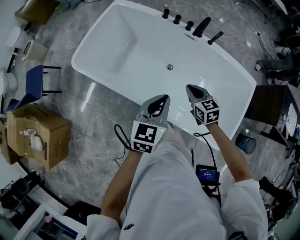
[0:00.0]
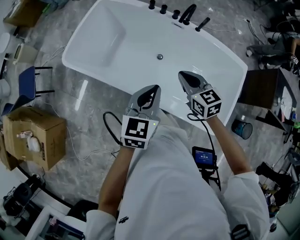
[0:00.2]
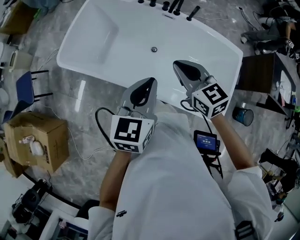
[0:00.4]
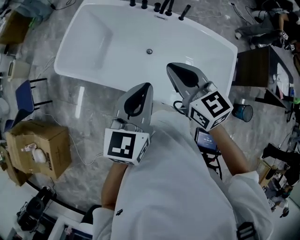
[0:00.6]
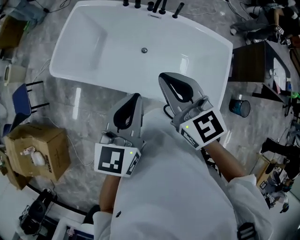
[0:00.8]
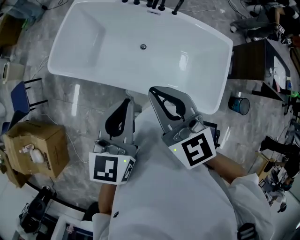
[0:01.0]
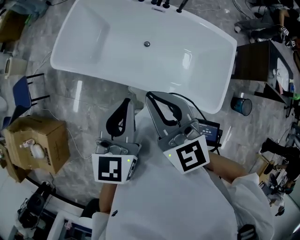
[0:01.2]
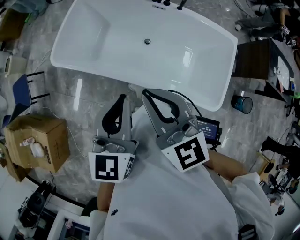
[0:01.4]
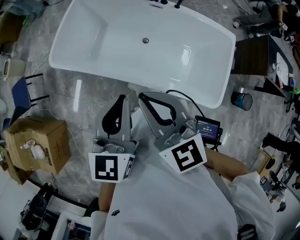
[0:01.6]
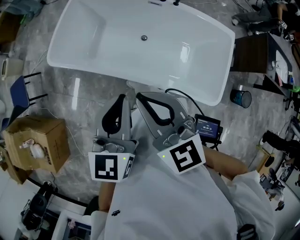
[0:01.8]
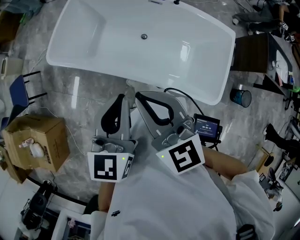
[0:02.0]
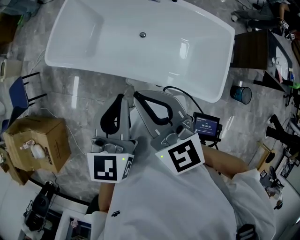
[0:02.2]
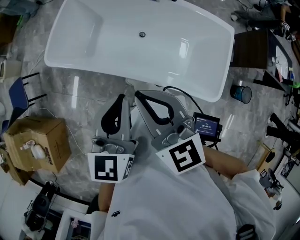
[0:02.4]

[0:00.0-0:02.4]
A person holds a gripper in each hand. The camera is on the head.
0.0 to 1.2 s: The left gripper goes about 20 cm upward and backward. The right gripper heads upward and backward, covering roughly 35 cm, and swivels some 30 degrees.
1.2 to 2.4 s: The grippers make only small movements.

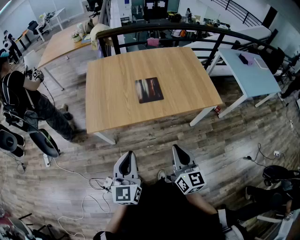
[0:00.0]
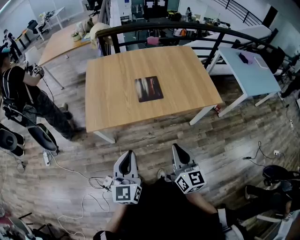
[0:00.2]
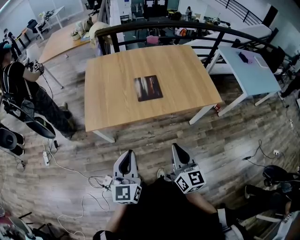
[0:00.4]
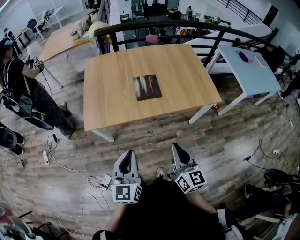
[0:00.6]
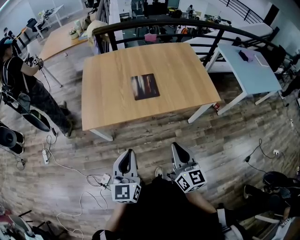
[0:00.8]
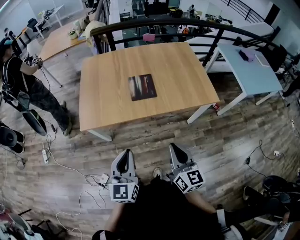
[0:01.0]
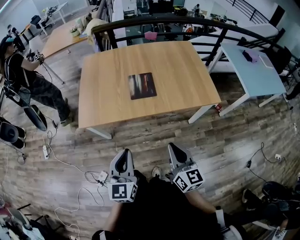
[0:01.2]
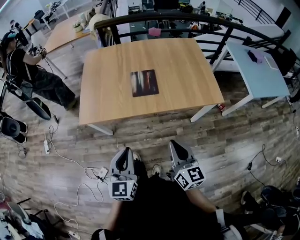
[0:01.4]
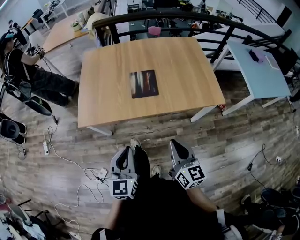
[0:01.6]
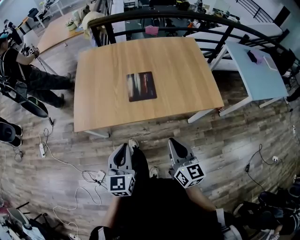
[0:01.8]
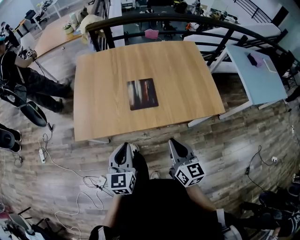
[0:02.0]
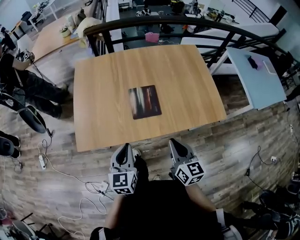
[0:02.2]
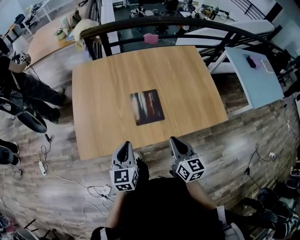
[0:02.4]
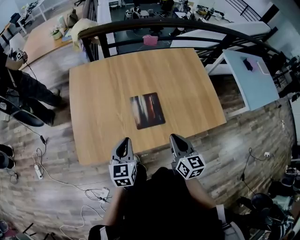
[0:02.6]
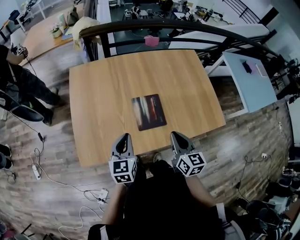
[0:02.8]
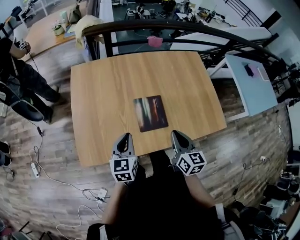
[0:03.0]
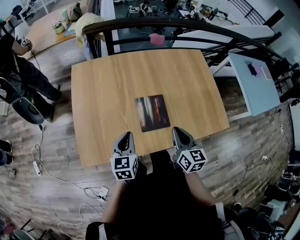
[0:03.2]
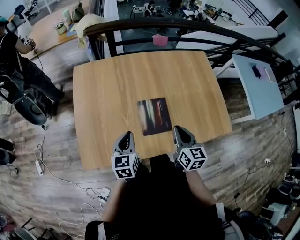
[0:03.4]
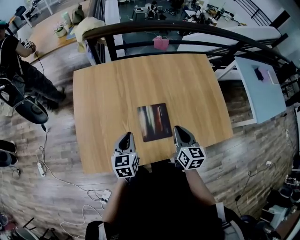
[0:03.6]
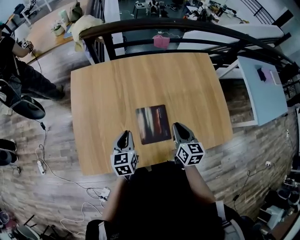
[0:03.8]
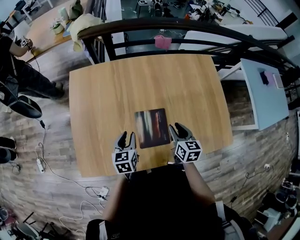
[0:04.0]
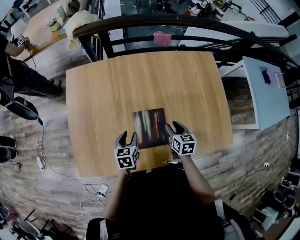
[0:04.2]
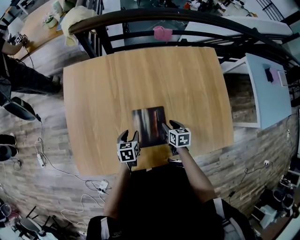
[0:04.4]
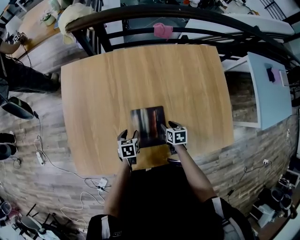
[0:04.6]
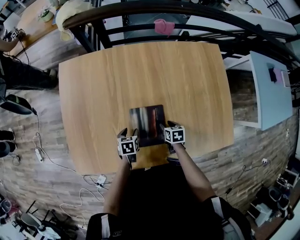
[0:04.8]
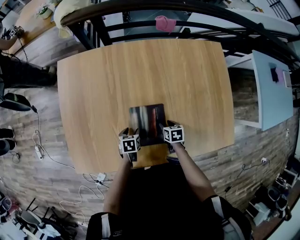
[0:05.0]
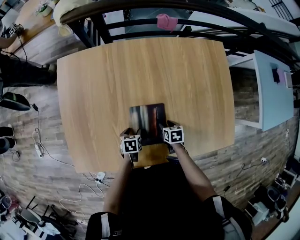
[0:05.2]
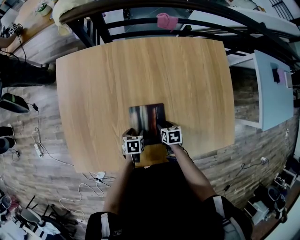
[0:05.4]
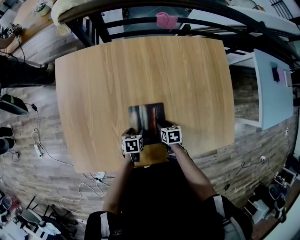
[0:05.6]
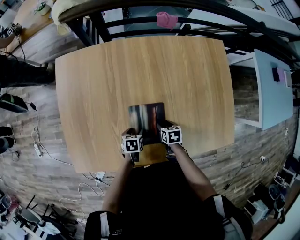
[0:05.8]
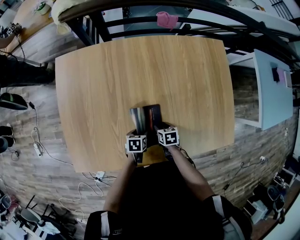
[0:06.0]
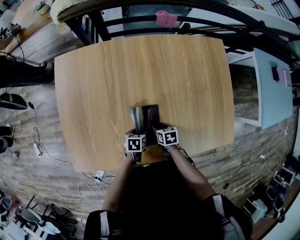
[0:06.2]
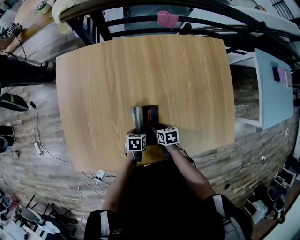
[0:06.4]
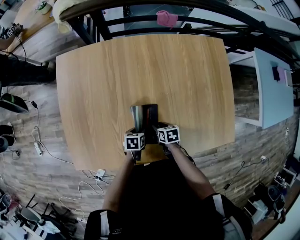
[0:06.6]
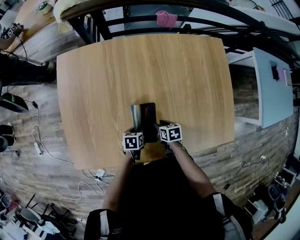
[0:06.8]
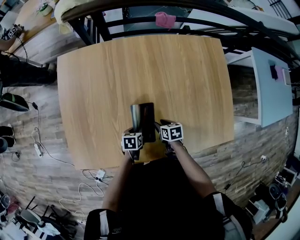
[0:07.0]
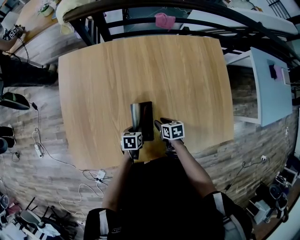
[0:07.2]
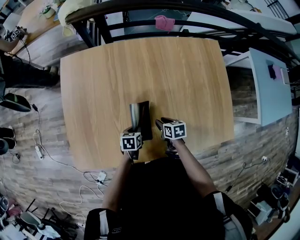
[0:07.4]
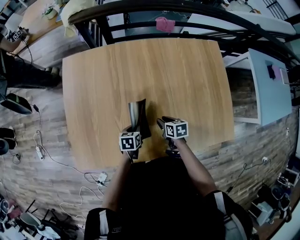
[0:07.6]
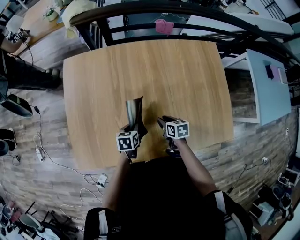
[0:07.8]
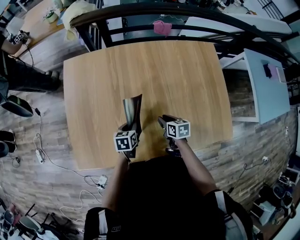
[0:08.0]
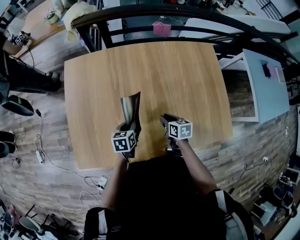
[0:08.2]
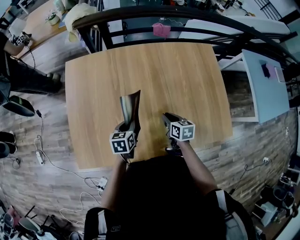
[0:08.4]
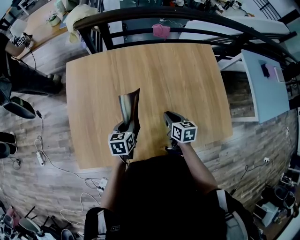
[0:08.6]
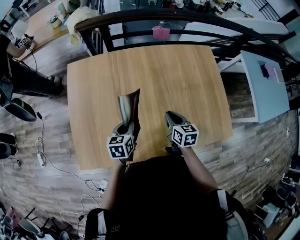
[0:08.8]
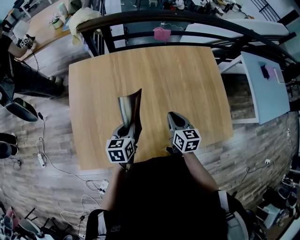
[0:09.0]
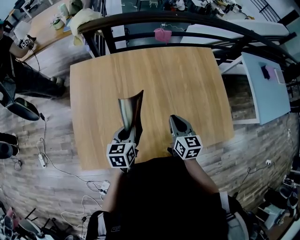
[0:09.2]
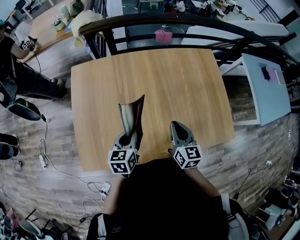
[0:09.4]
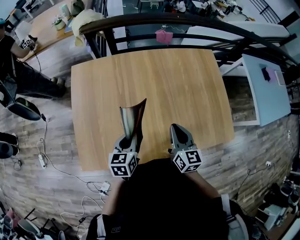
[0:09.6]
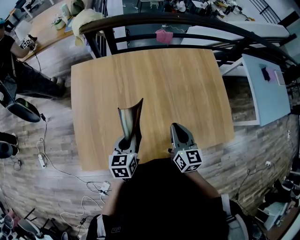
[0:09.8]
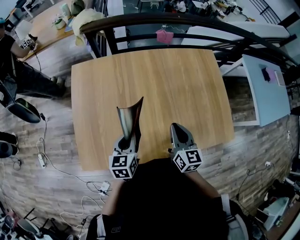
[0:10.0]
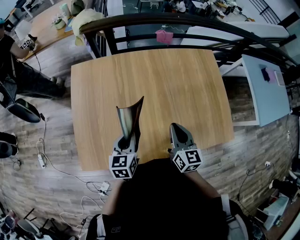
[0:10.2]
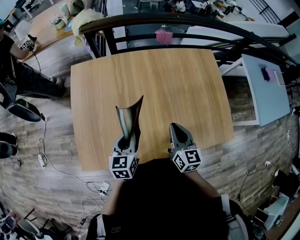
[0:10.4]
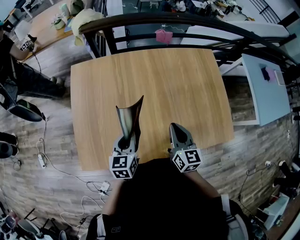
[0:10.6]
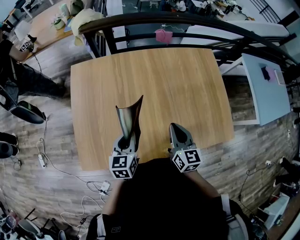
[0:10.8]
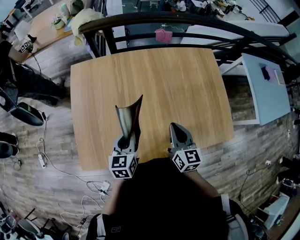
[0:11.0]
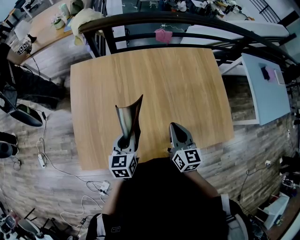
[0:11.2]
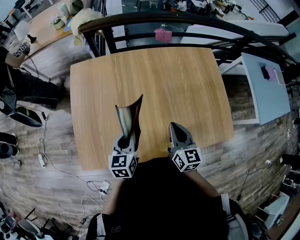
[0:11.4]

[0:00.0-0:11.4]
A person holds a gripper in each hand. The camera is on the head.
0.0 to 1.4 s: Both grippers move to the right, about 10 cm.
1.4 to 2.8 s: Both grippers travel together forward, about 35 cm.
2.8 to 4.2 s: The right gripper is displaced forward and downward by roughly 25 cm, swivels some 20 degrees, and opens. The left gripper goes some 20 cm downward and forward, changes its angle by approximately 20 degrees, and opens its fingers.
4.2 to 5.6 s: Both grippers move downward, roughly 15 cm. The left gripper rotates roughly 30 degrees. Meanwhile the right gripper changes its angle by roughly 30 degrees.
5.6 to 7.2 s: The left gripper closes.
7.2 to 8.6 s: Both grippers move upward, approximately 15 cm. The right gripper changes its angle by about 20 degrees, and closes. Meanwhile the left gripper changes its angle by some 20 degrees.
8.6 to 10.0 s: The left gripper goes roughly 10 cm upward; the right gripper heads upward, covering about 15 cm, and swivels roughly 30 degrees.
10.0 to 11.4 s: Both grippers stay put.

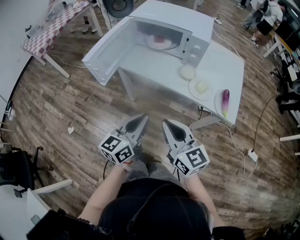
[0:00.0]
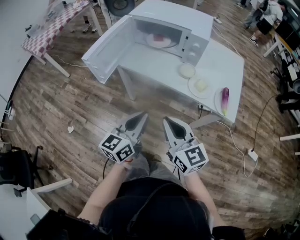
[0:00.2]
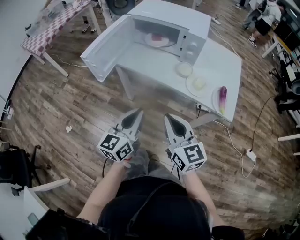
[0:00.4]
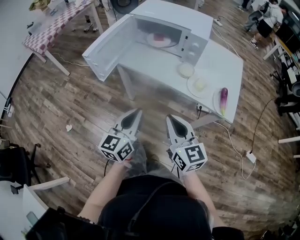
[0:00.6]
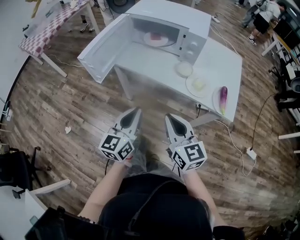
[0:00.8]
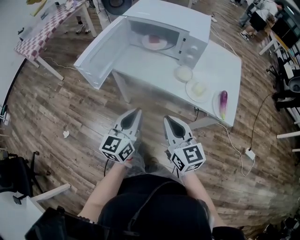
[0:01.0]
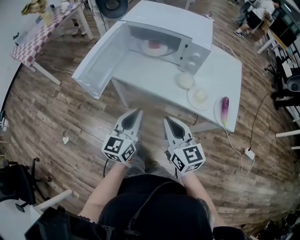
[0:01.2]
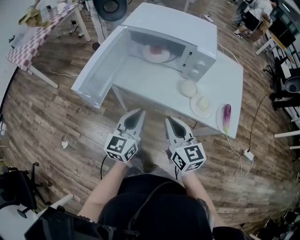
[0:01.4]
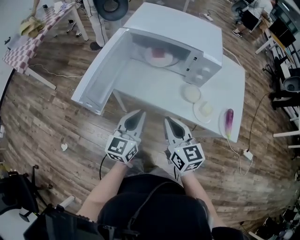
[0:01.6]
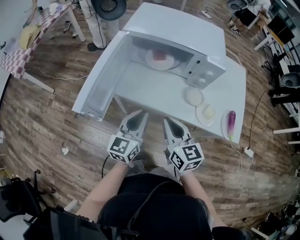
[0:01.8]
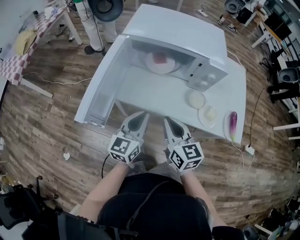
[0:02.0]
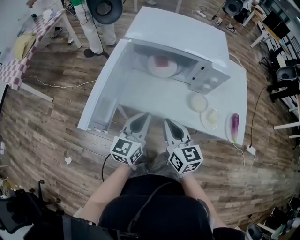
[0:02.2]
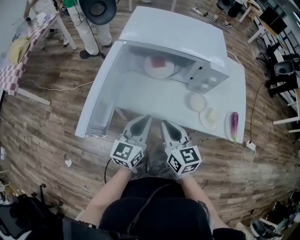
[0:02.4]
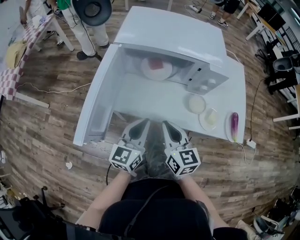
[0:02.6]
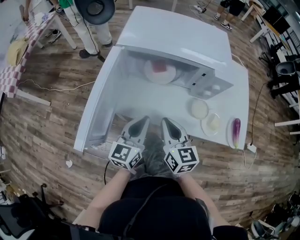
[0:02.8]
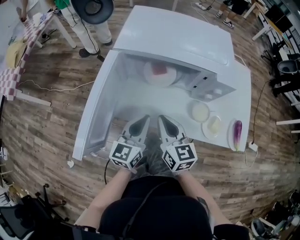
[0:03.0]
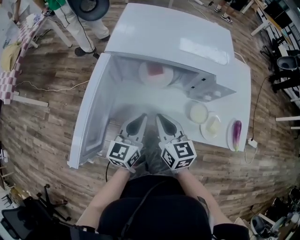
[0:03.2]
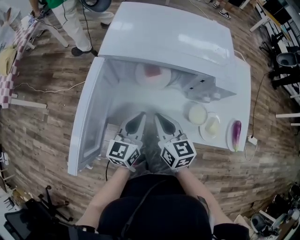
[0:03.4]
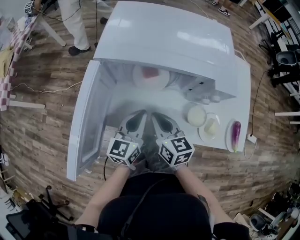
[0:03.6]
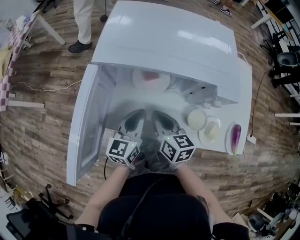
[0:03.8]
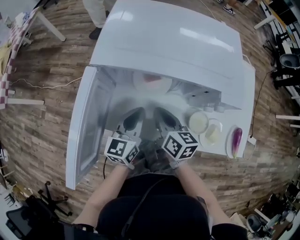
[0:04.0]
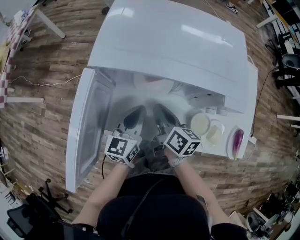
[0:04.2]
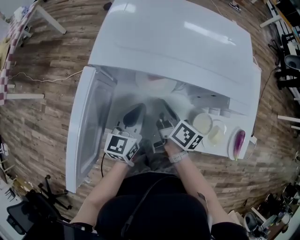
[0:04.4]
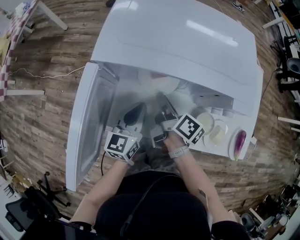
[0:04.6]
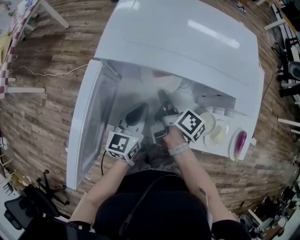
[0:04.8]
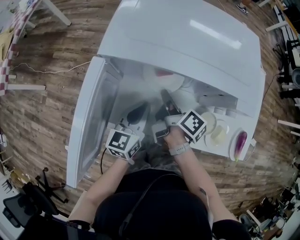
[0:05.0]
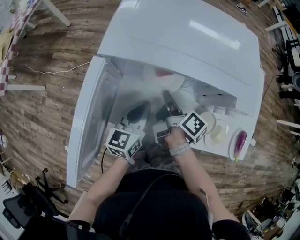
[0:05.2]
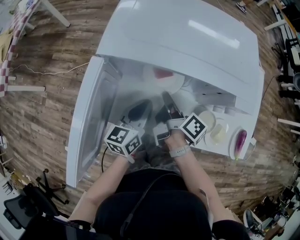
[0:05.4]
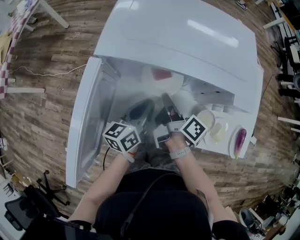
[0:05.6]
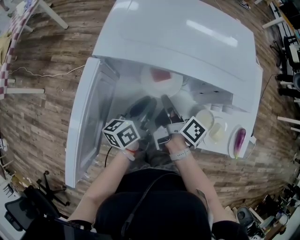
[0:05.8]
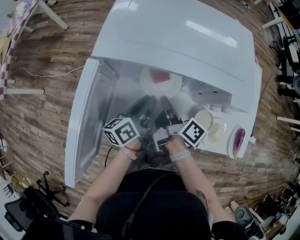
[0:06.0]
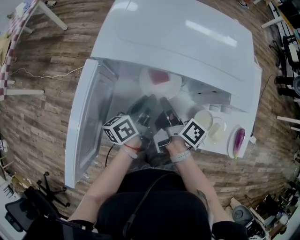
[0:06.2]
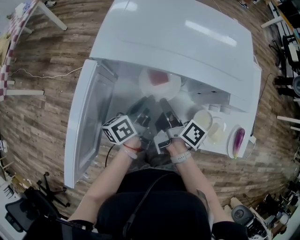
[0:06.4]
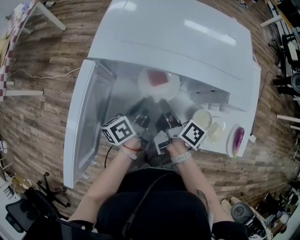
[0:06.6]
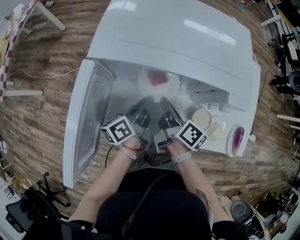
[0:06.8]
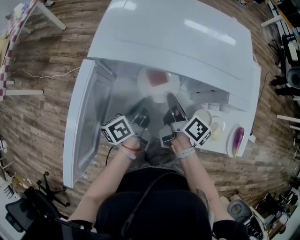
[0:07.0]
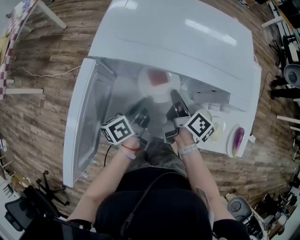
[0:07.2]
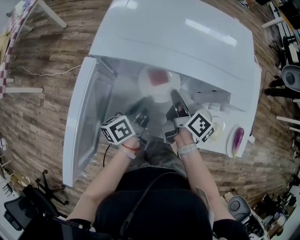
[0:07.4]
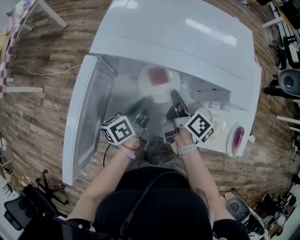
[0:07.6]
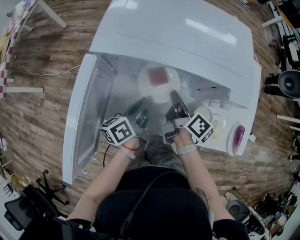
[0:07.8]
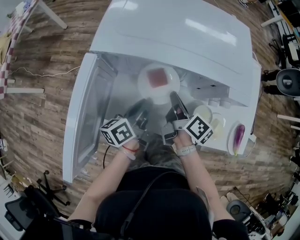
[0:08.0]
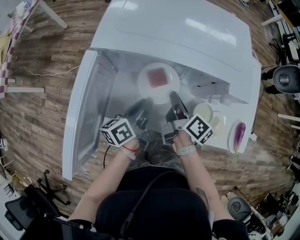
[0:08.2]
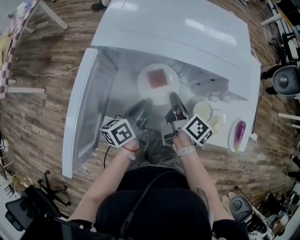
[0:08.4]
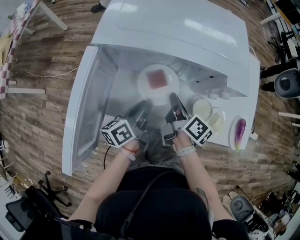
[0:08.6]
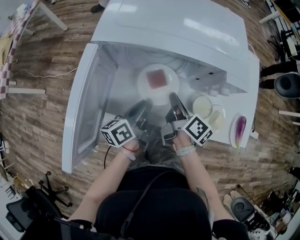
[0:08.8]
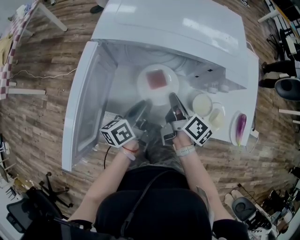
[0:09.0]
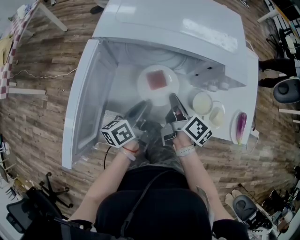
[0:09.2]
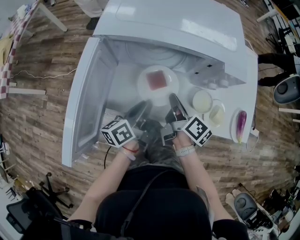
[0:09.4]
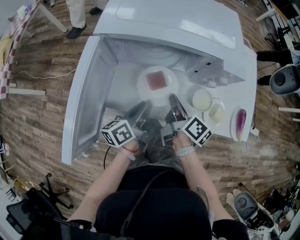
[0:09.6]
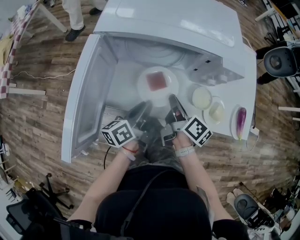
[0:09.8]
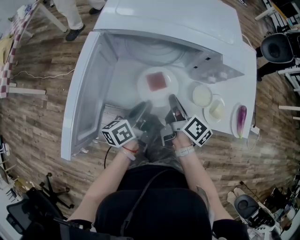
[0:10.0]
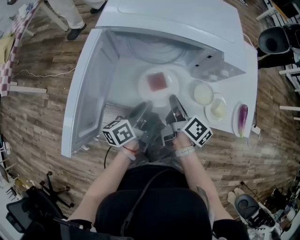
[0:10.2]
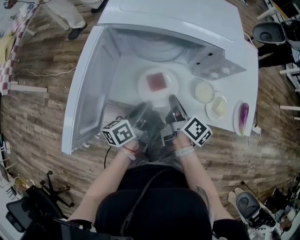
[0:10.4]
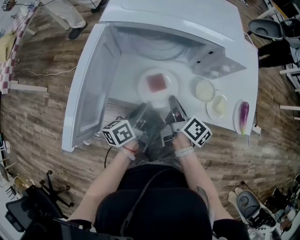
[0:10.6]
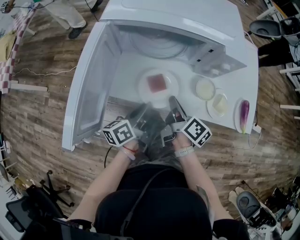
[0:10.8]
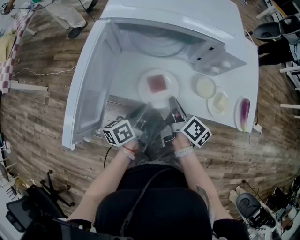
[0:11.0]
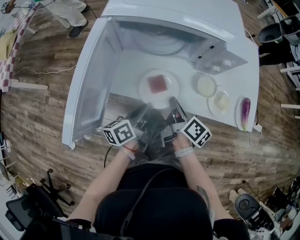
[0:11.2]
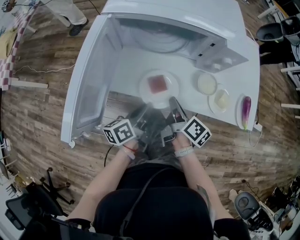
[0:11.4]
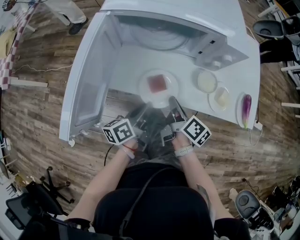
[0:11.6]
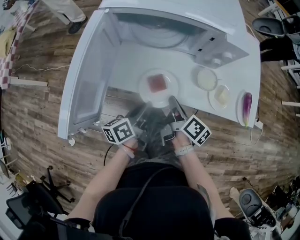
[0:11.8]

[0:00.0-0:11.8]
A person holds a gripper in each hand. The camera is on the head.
0.0 to 1.4 s: Both grippers move forward, about 15 cm.
1.4 to 3.0 s: The left gripper moves forward, approximately 15 cm. The right gripper shifts approximately 20 cm forward and to the left.
3.0 to 4.4 s: The right gripper travels forward and downward by roughly 15 cm, and twists some 50 degrees clockwise, seen from behind. Meanwhile the left gripper heads forward, covering about 10 cm.
4.4 to 6.0 s: The left gripper turns by about 40 degrees, and opens up.
6.0 to 7.4 s: The right gripper moves roughly 5 cm.
7.4 to 8.8 s: The grippers both shift backward by about 5 cm.
8.8 to 10.4 s: The grippers both shift backward by roughly 5 cm.
10.4 to 11.8 s: Both grippers travel together backward, roughly 5 cm.
